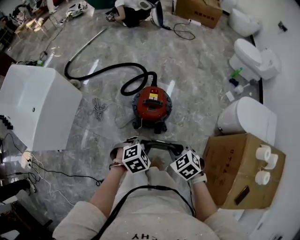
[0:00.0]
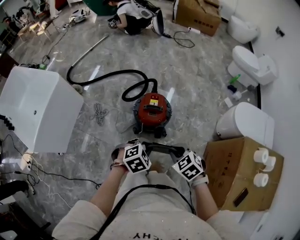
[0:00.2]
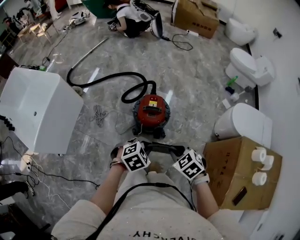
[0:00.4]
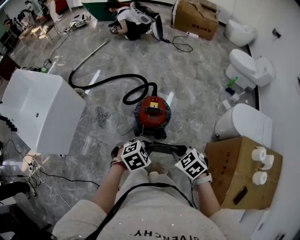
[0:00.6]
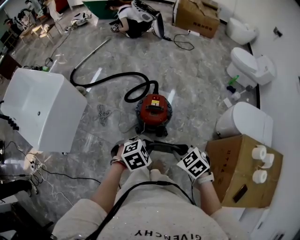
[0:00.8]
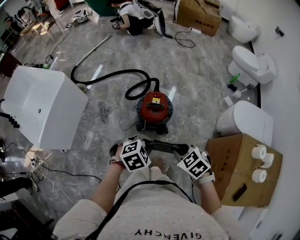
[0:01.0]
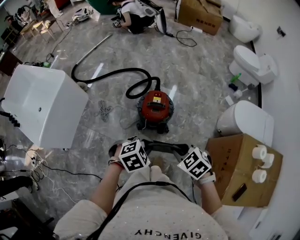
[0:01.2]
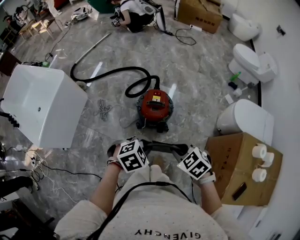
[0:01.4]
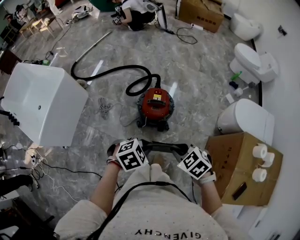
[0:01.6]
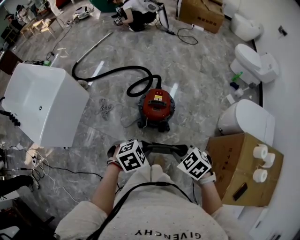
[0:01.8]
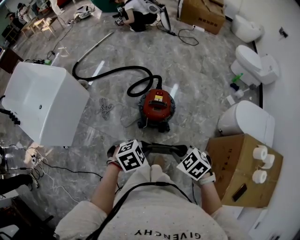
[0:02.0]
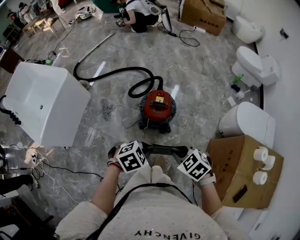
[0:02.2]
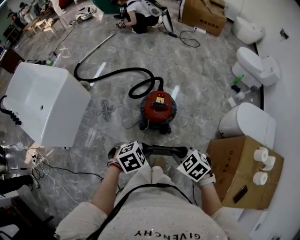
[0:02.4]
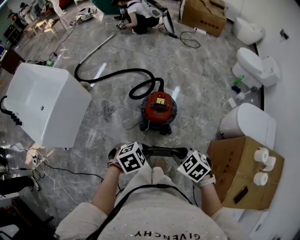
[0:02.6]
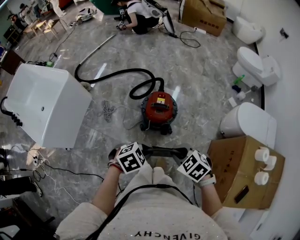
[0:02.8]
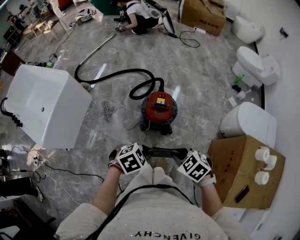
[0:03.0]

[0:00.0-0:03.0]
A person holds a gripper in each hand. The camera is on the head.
0:00.0 to 0:01.6: Both grippers move upward, roughly 10 cm.
0:01.6 to 0:03.0: The grippers move only a little.

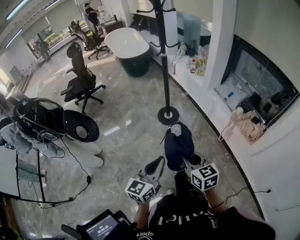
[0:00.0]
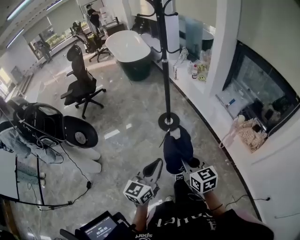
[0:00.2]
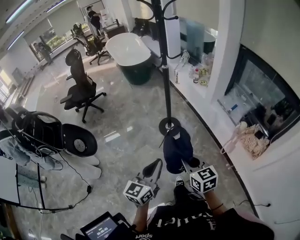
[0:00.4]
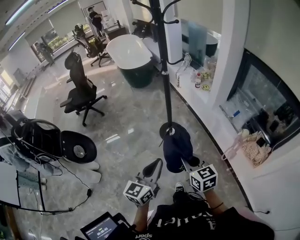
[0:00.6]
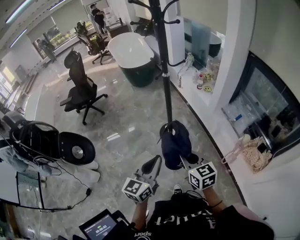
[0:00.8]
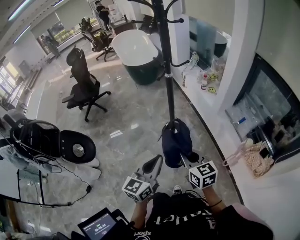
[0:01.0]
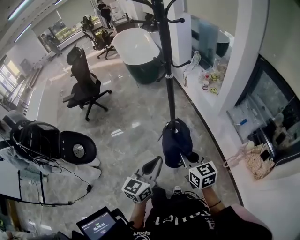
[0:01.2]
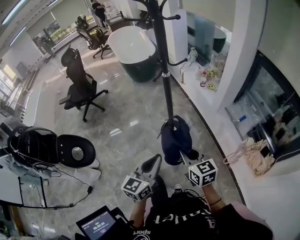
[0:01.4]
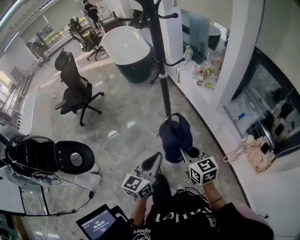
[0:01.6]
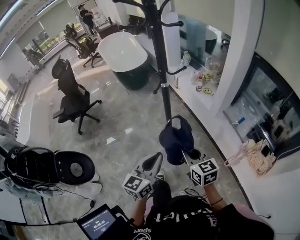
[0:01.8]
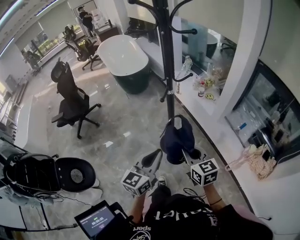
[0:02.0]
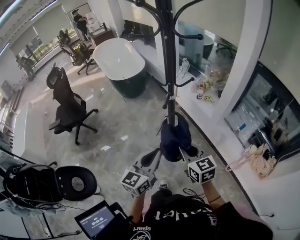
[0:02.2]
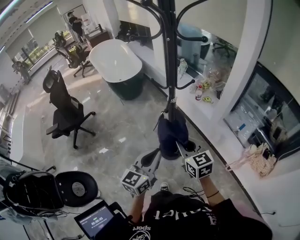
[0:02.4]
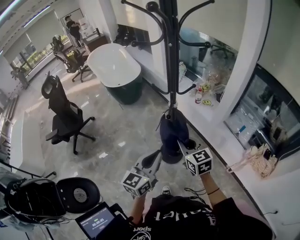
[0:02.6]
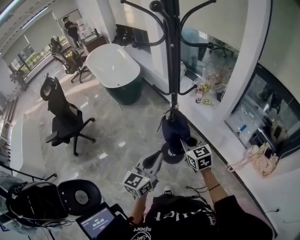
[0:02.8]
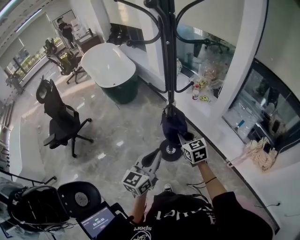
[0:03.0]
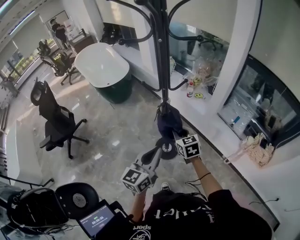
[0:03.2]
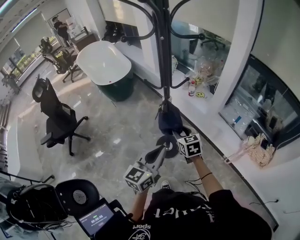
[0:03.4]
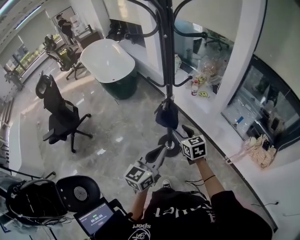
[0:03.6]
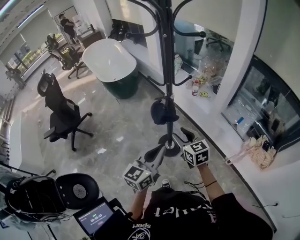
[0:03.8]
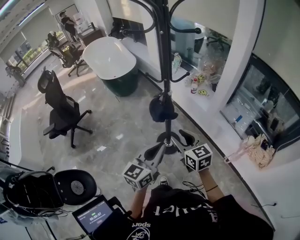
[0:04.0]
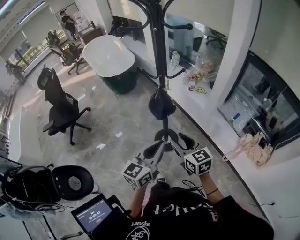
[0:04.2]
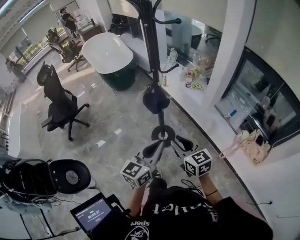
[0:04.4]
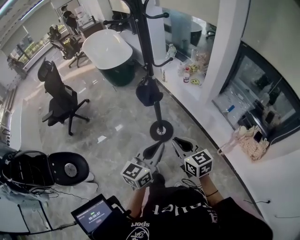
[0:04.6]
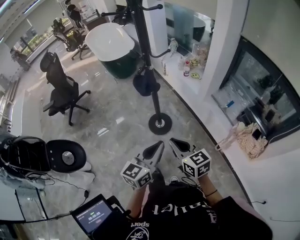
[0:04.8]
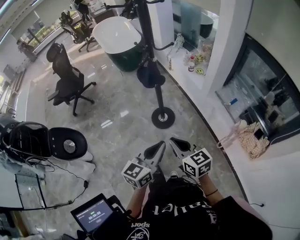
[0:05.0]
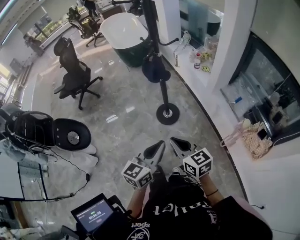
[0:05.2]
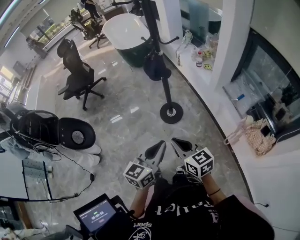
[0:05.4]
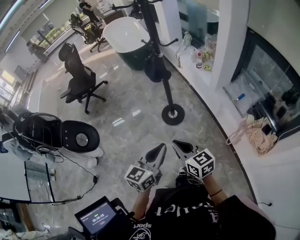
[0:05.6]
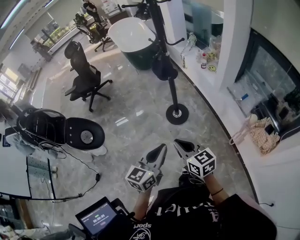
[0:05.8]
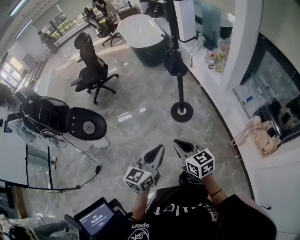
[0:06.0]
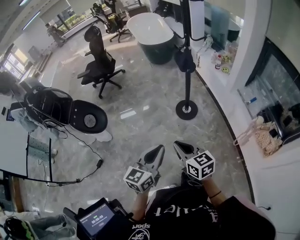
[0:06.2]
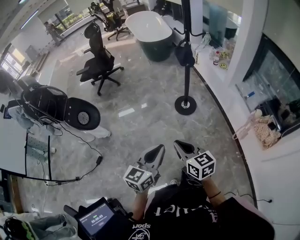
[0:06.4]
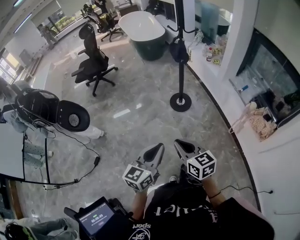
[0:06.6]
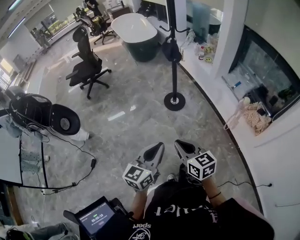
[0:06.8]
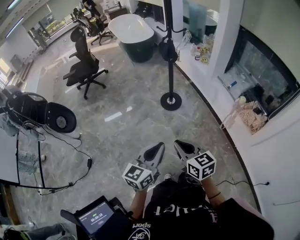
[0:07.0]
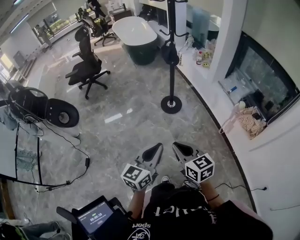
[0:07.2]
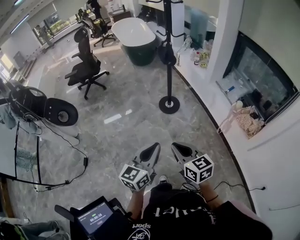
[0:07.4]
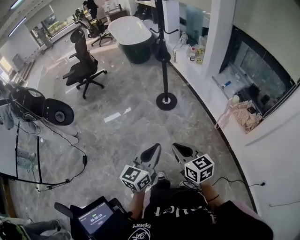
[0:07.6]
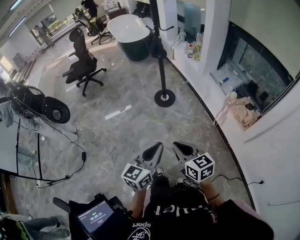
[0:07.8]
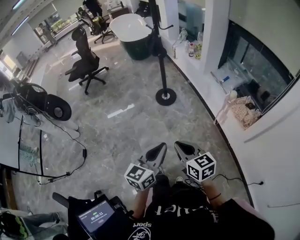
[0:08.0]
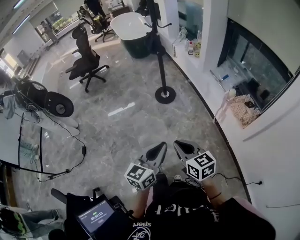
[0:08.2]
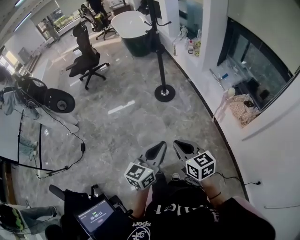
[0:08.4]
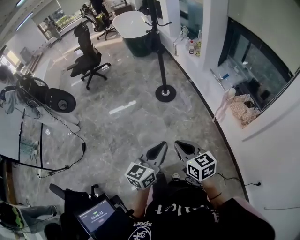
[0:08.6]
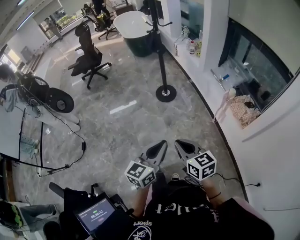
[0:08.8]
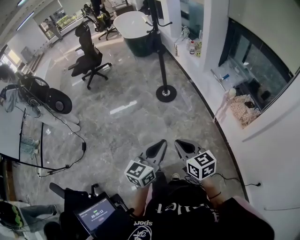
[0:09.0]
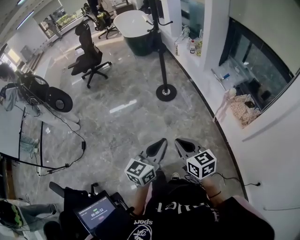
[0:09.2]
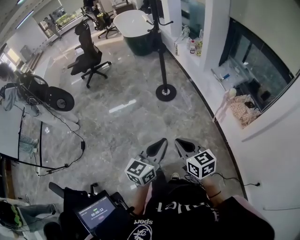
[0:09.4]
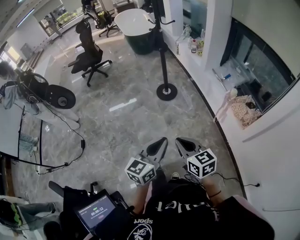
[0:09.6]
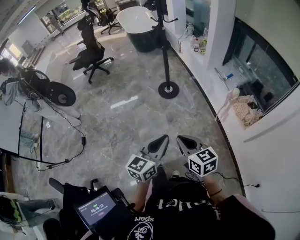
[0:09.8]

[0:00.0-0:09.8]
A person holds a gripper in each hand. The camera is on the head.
0:00.0 to 0:01.4: Both grippers travel together forward, approximately 35 cm.
0:01.4 to 0:02.8: Both grippers travel together forward and to the left, roughly 30 cm.
0:02.8 to 0:04.2: The left gripper heads to the right and backward, covering approximately 10 cm; the right gripper moves backward, approximately 10 cm, and opens up.
0:04.2 to 0:05.6: Both grippers move backward, some 25 cm. The right gripper changes its angle by about 20 degrees, and closes.
0:05.6 to 0:07.0: Both grippers travel together backward and to the left, some 30 cm.
0:07.0 to 0:08.4: The two grippers go about 25 cm to the right and backward.
0:08.4 to 0:09.8: The grippers make only small movements.

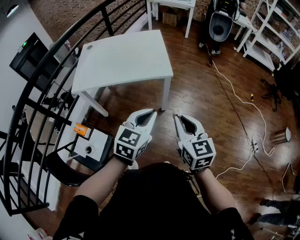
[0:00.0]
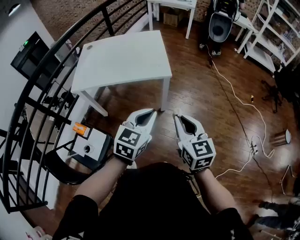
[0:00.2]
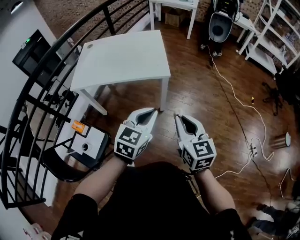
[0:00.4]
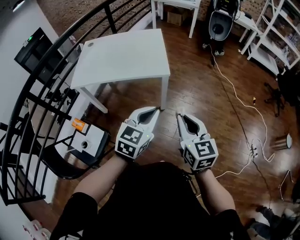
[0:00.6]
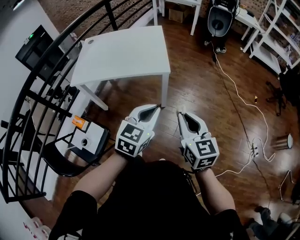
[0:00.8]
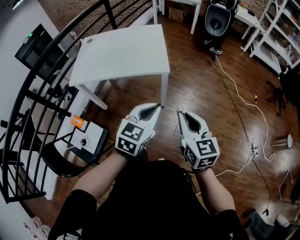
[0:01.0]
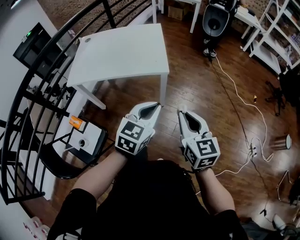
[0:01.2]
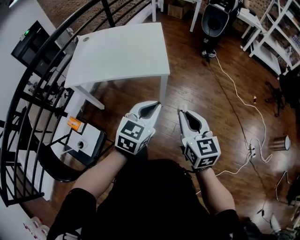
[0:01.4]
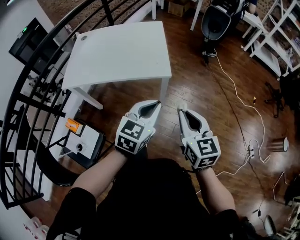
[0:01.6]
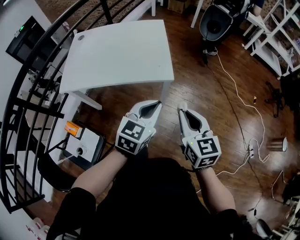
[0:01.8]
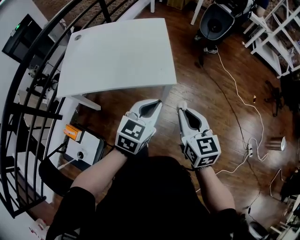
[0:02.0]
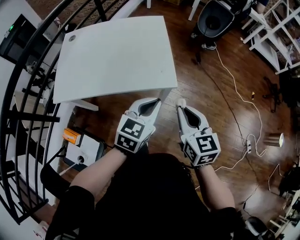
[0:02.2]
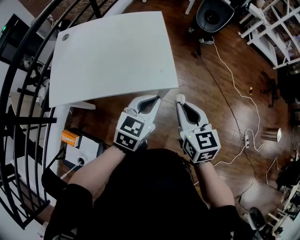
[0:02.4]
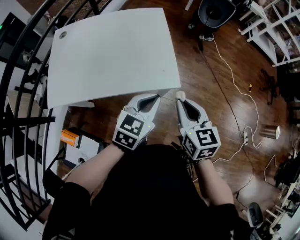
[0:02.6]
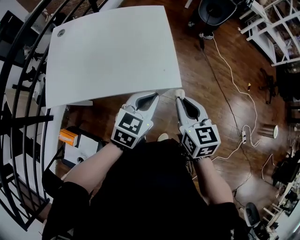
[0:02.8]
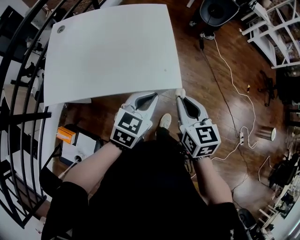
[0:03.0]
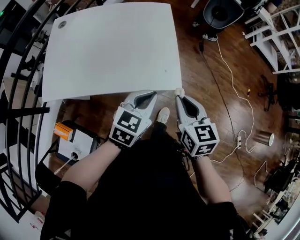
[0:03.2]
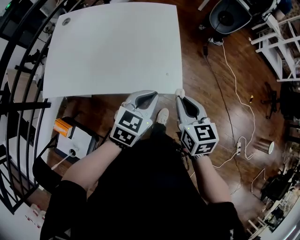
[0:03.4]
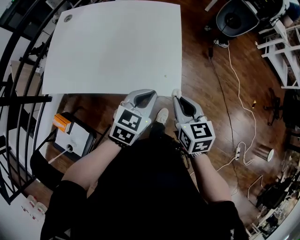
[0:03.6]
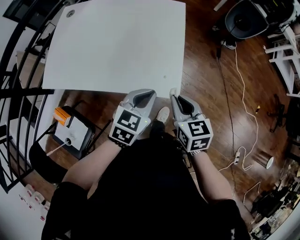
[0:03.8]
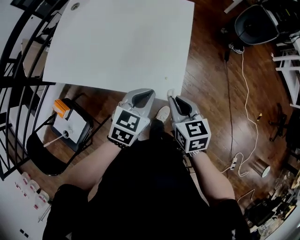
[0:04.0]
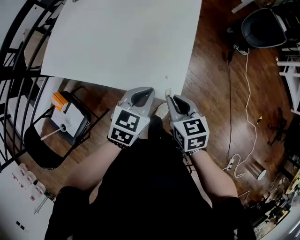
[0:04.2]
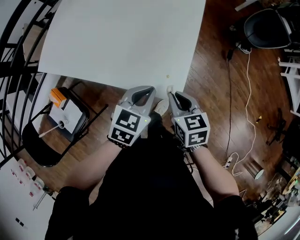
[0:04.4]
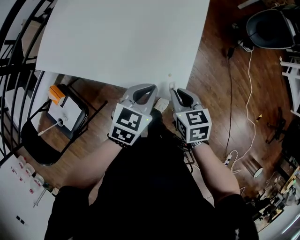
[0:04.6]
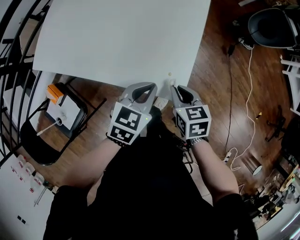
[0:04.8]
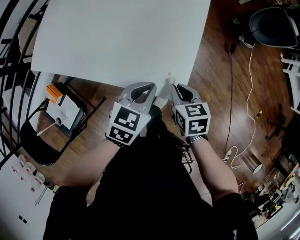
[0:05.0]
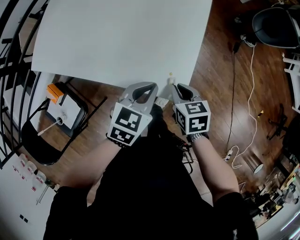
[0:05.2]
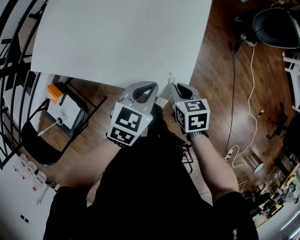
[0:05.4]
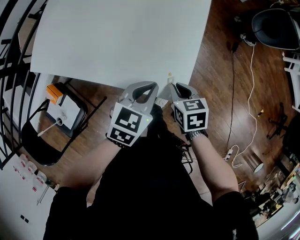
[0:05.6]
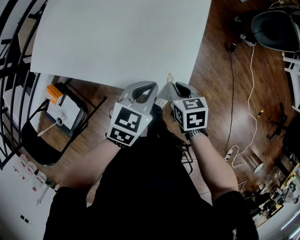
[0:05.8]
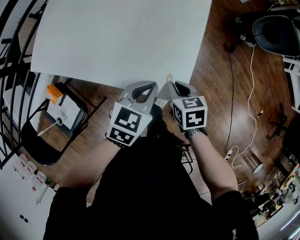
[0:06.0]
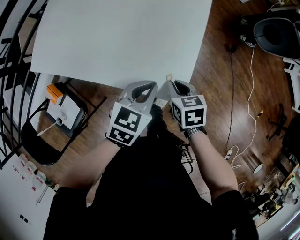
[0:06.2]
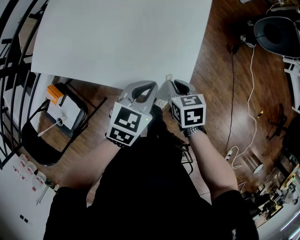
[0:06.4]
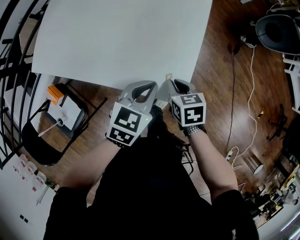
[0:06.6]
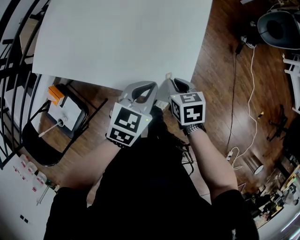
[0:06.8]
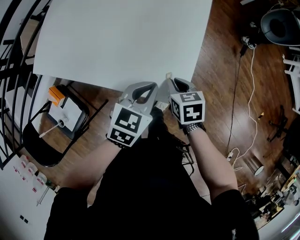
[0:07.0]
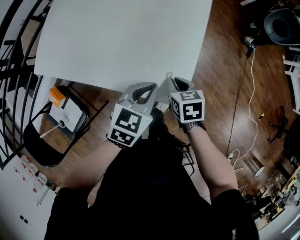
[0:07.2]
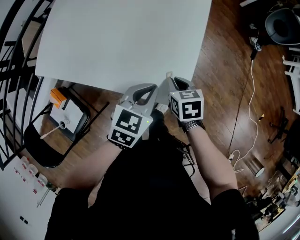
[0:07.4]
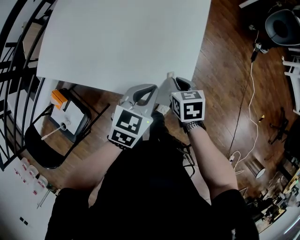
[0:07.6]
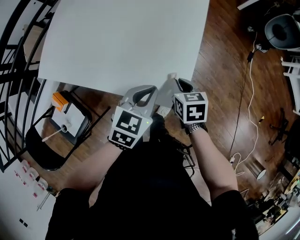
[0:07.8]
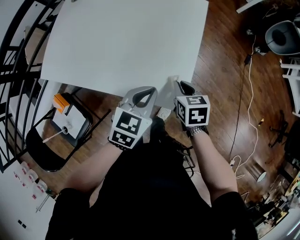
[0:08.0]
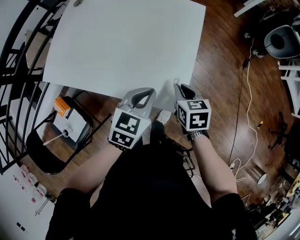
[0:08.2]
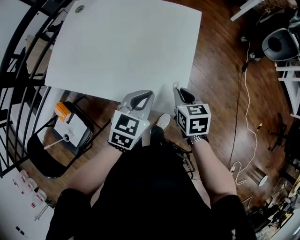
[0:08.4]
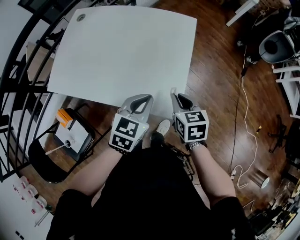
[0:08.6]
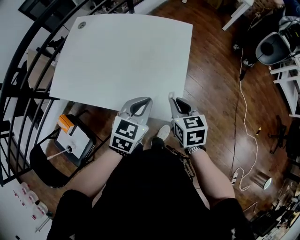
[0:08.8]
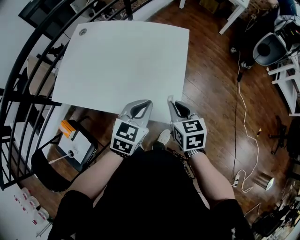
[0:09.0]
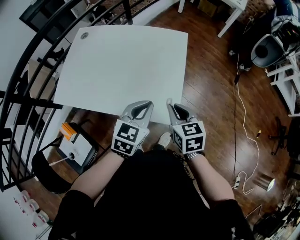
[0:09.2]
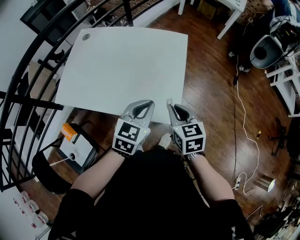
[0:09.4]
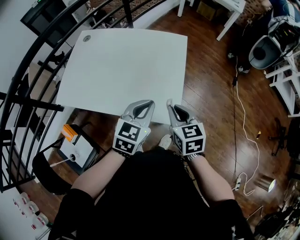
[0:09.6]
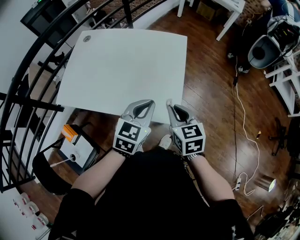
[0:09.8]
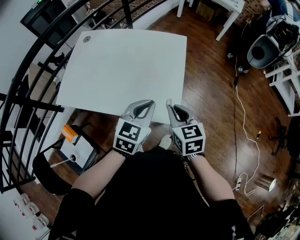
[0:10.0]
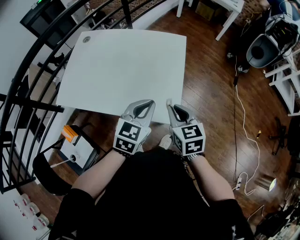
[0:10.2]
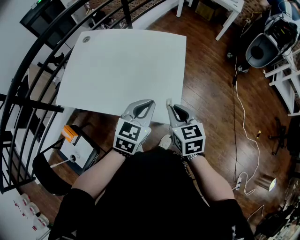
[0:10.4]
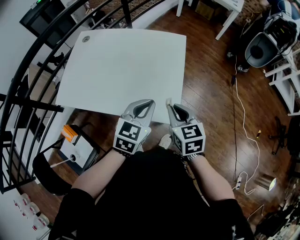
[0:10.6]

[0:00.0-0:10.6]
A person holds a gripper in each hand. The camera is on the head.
0:00.0 to 0:01.6: Both grippers move forward, about 10 cm.
0:01.6 to 0:03.0: Both grippers move forward and to the left, approximately 25 cm.
0:03.0 to 0:04.6: The right gripper shifts about 15 cm downward, and swivels some 30 degrees. Meanwhile the left gripper goes roughly 10 cm downward, and changes its angle by about 30 degrees.
0:04.6 to 0:06.0: The right gripper is displaced downward by approximately 5 cm.
0:06.0 to 0:07.6: The grippers stay close to where they were, moving slightly.
0:07.6 to 0:09.0: The right gripper heads upward, covering some 15 cm, while the left gripper travels upward by roughly 10 cm.
0:09.0 to 0:10.6: The grippers move only a little.
